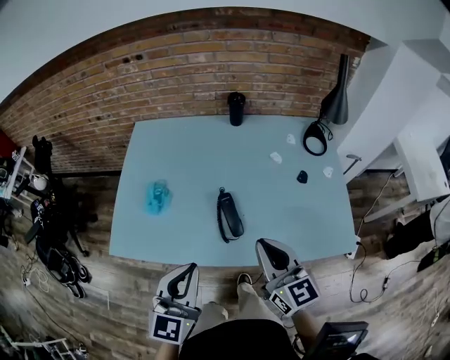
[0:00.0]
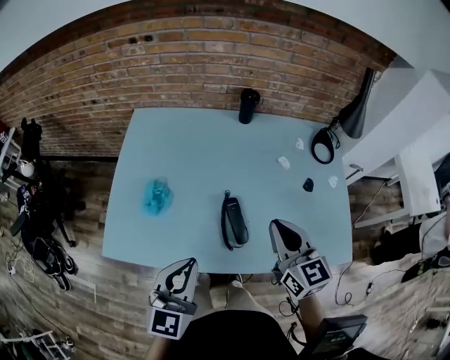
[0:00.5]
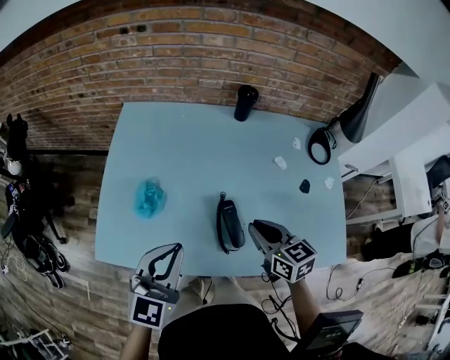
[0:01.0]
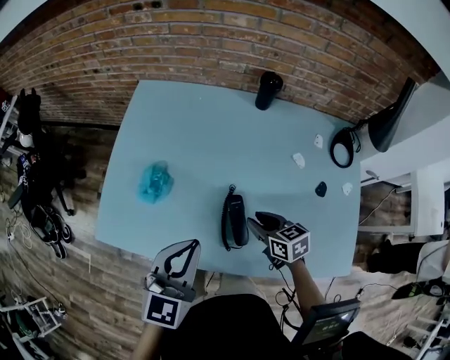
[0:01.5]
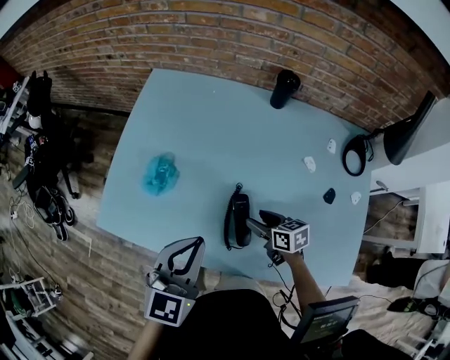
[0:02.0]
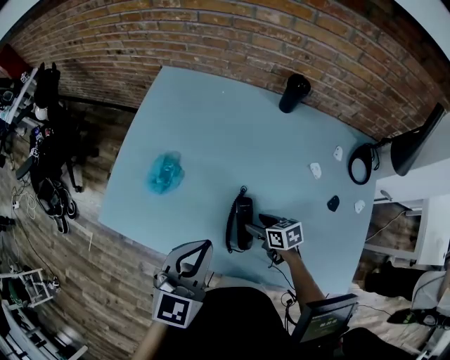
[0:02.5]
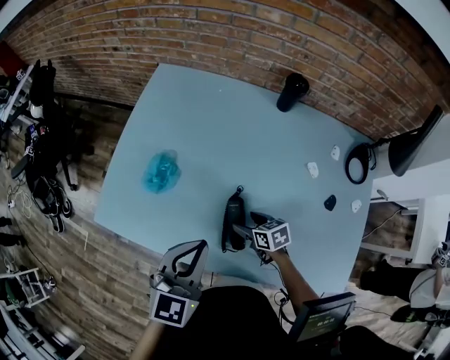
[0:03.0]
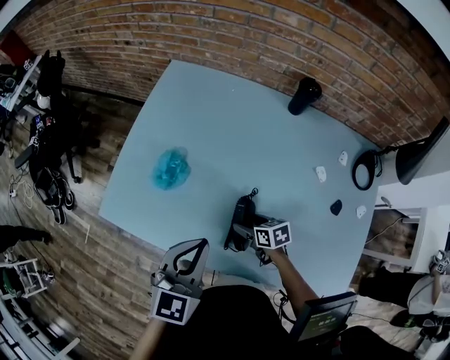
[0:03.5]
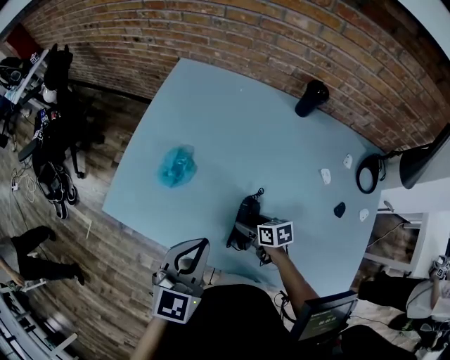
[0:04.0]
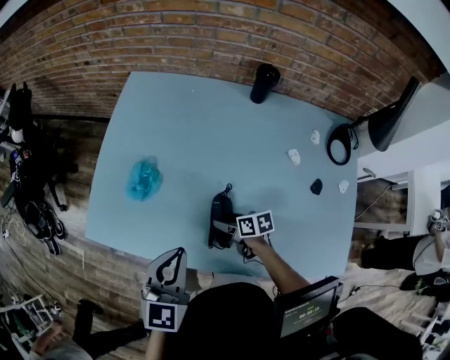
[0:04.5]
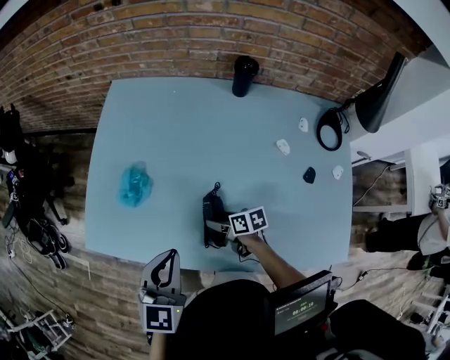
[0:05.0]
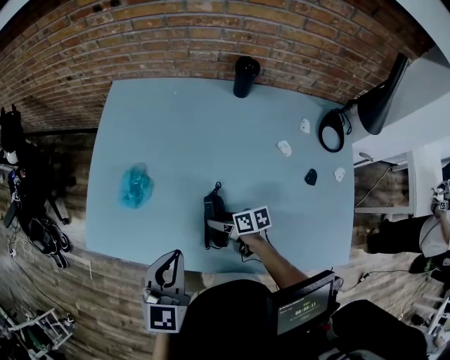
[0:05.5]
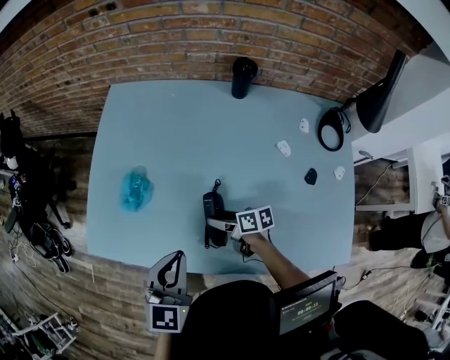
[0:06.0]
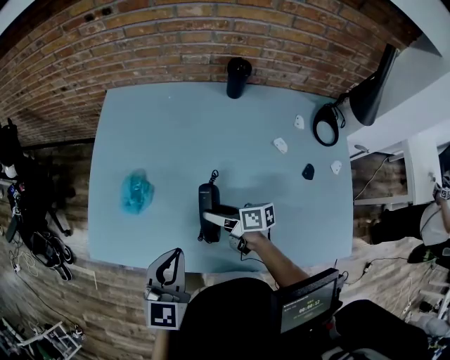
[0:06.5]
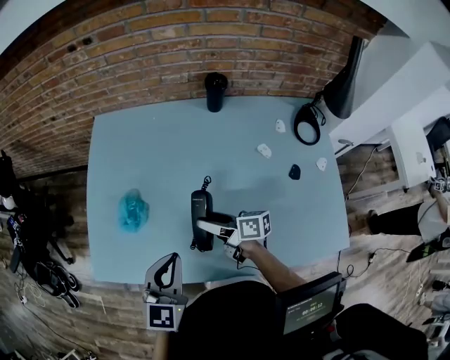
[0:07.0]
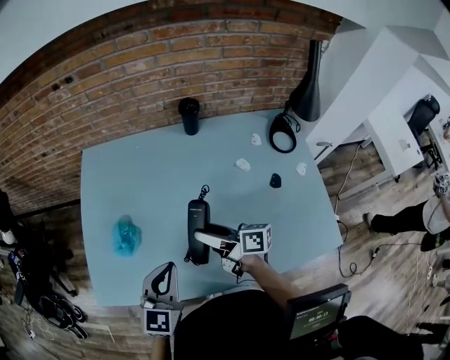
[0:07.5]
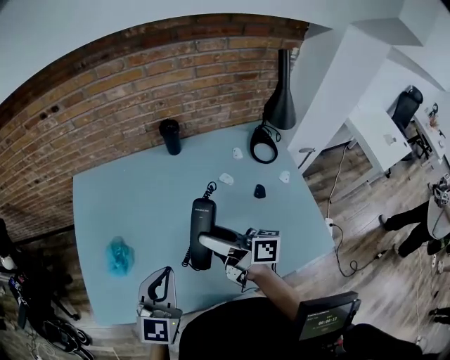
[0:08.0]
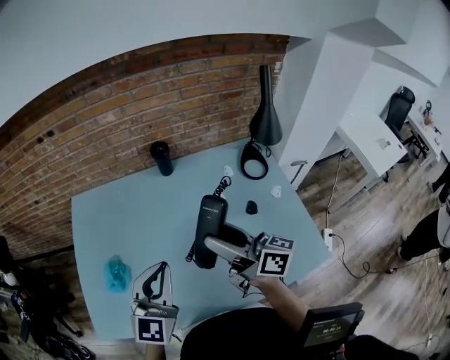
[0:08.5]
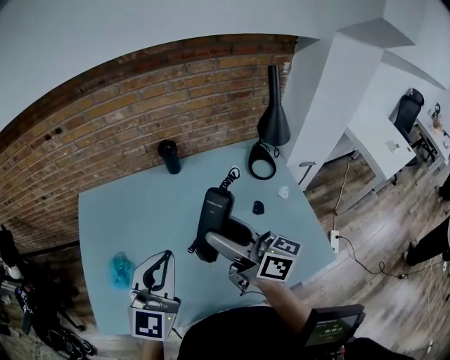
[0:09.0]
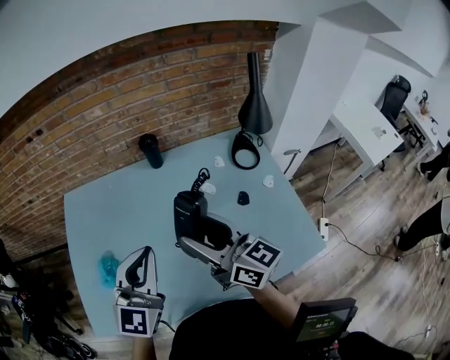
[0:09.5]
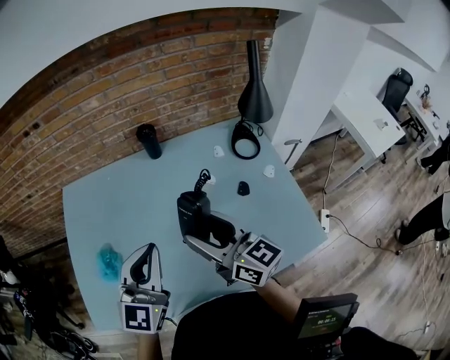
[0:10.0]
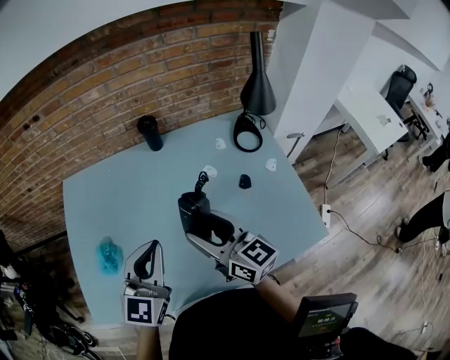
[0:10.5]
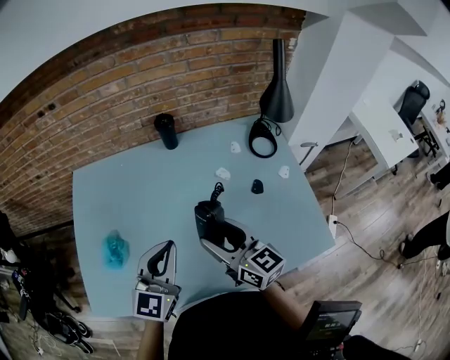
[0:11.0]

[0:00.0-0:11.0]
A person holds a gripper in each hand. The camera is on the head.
0:00.0 to 0:02.0: The left gripper heads forward, covering about 15 cm; the right gripper moves downward and forward, some 35 cm, points its fingers approximately 30 degrees further downward, and opens.
0:02.0 to 0:03.5: The right gripper shifts approximately 10 cm downward and to the left.
0:03.5 to 0:05.5: The right gripper changes its angle by roughly 20 degrees.
0:05.5 to 0:07.5: The right gripper heads upward, covering approximately 20 cm, and tips its fingers upward by some 30 degrees.
0:07.5 to 0:09.0: Both grippers travel together upward and to the right, some 20 cm. The left gripper rotates about 30 degrees, while the right gripper changes its angle by about 40 degrees.
0:09.0 to 0:11.0: Both grippers move downward, approximately 10 cm. The right gripper changes its angle by about 30 degrees.

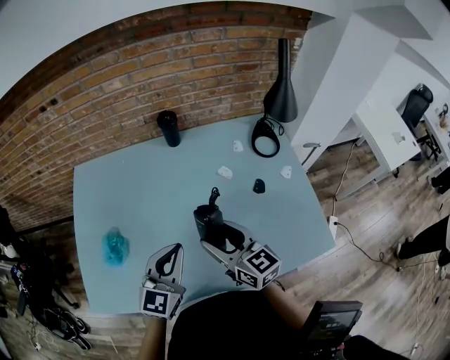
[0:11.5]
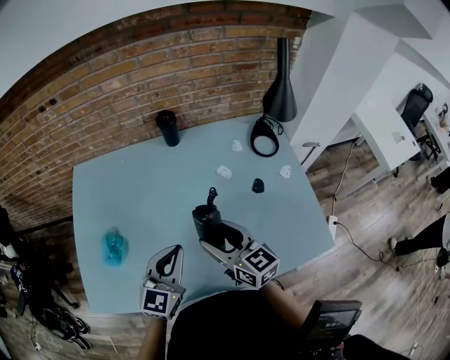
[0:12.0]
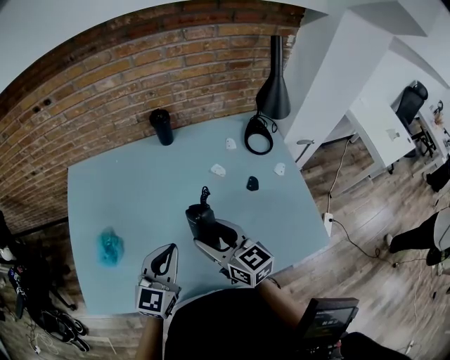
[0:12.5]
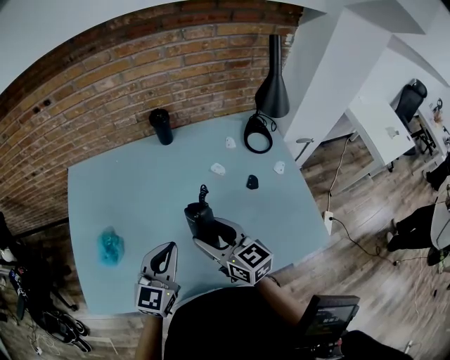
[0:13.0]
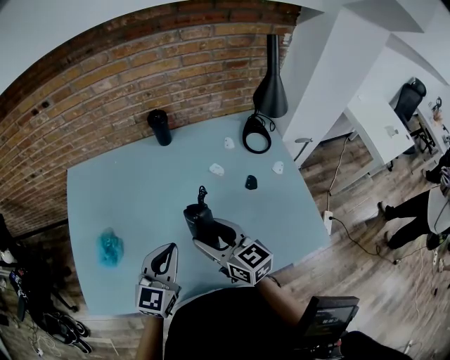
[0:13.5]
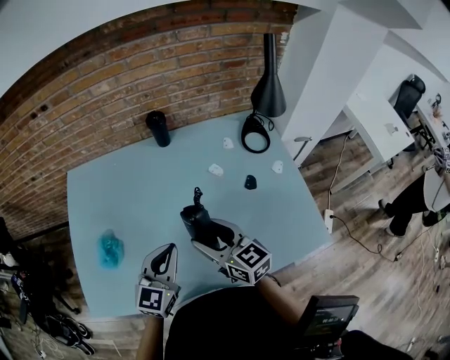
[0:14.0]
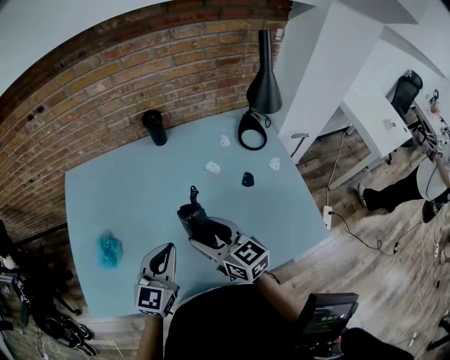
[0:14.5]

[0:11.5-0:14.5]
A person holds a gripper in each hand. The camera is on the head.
0:11.5 to 0:13.0: The grippers make only small movements.
0:13.0 to 0:14.5: Both grippers stay put.

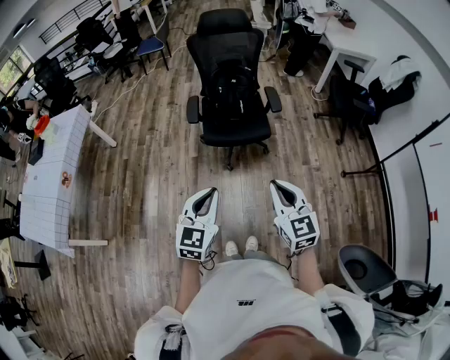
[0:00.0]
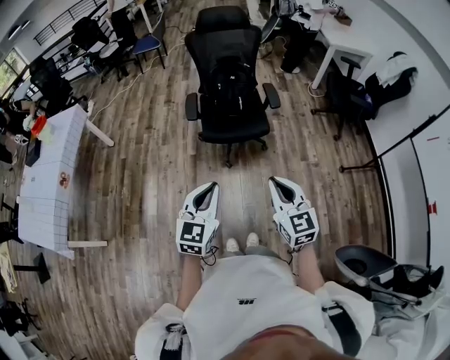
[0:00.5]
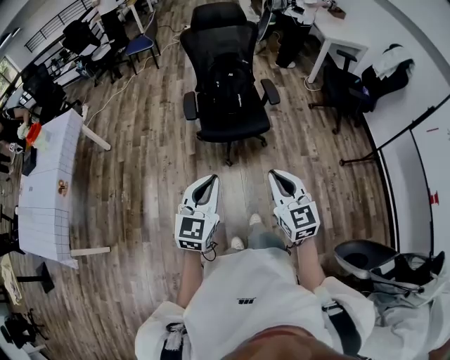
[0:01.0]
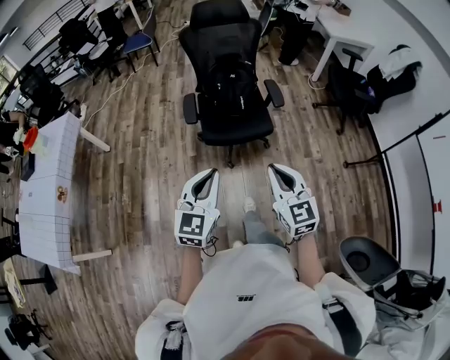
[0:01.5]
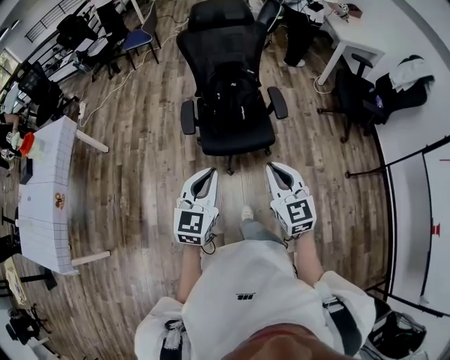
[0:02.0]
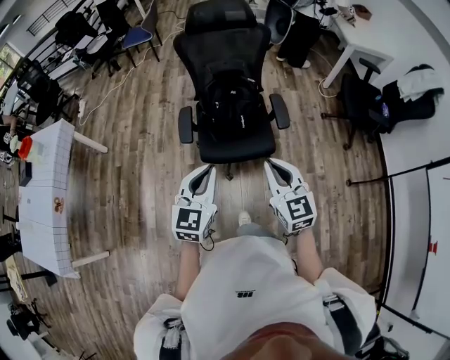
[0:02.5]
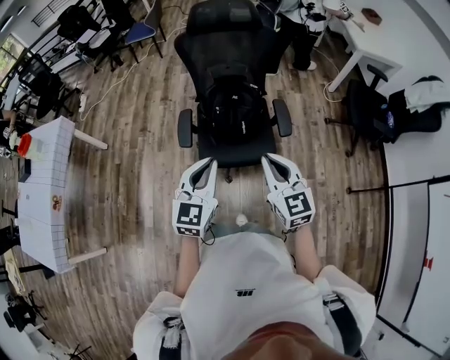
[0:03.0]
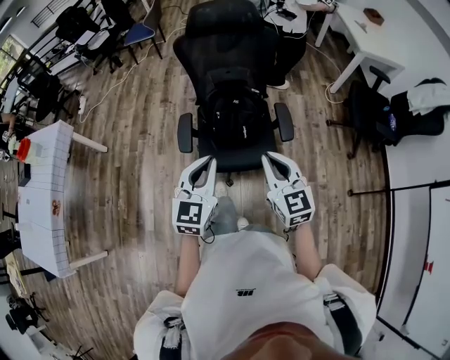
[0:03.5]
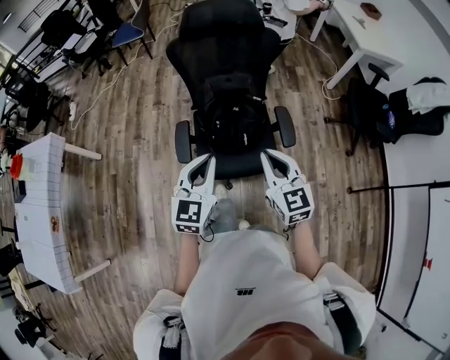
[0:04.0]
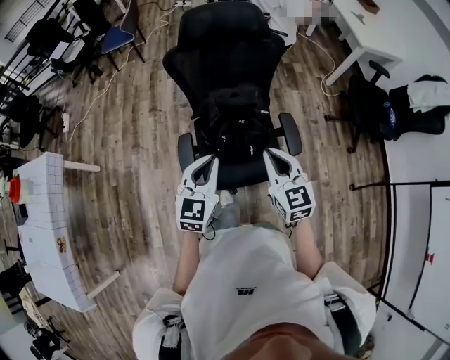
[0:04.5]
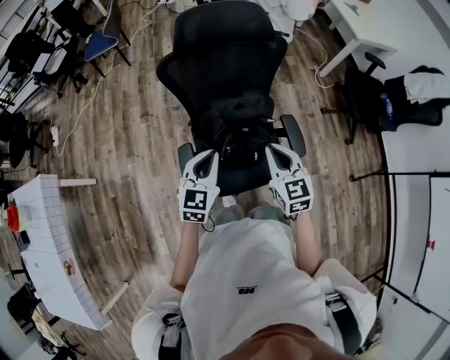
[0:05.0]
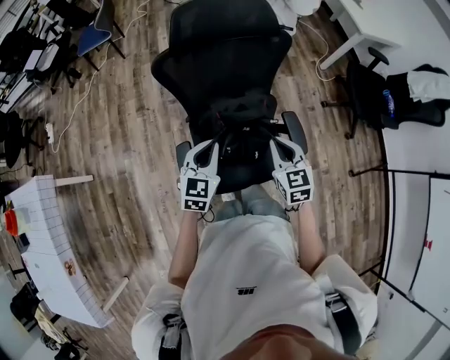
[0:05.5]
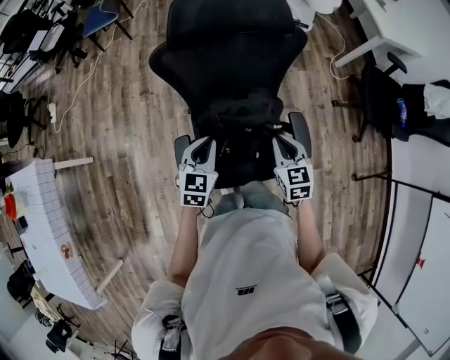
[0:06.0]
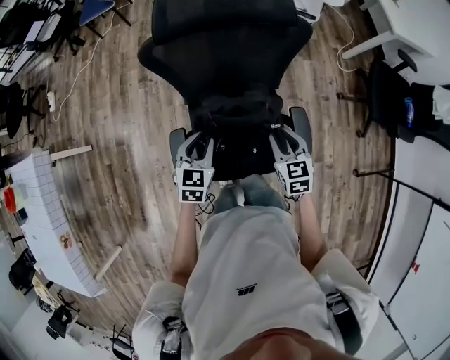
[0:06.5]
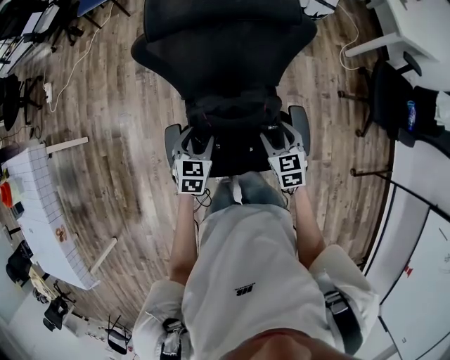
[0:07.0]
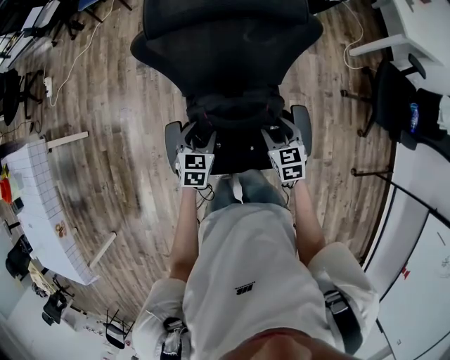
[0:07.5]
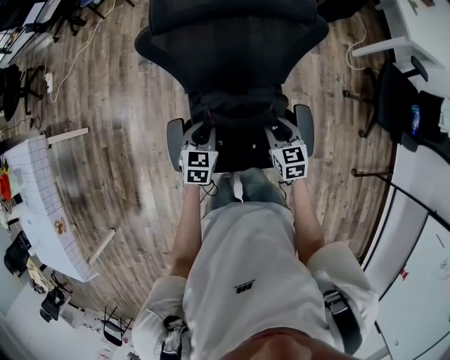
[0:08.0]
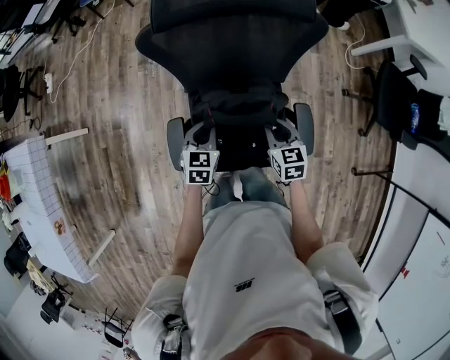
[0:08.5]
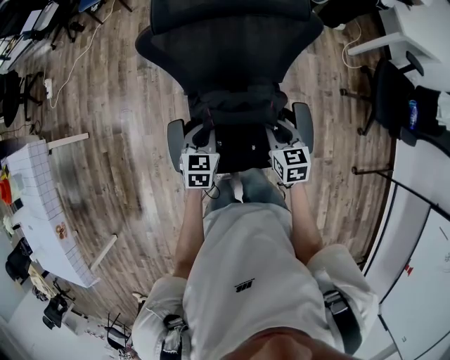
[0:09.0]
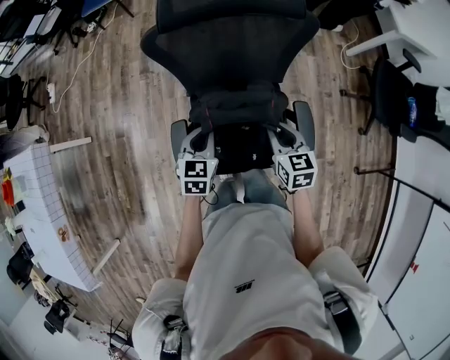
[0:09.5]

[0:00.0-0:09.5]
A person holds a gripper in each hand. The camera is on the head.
0:00.0 to 0:02.0: Both grippers travel together forward, about 25 cm.
0:02.0 to 0:04.0: Both grippers move forward, some 30 cm.
0:04.0 to 0:05.5: The grippers both shift forward and downward by some 25 cm. The right gripper turns by roughly 20 degrees.
0:05.5 to 0:07.5: The two grippers go some 20 cm downward and forward. The left gripper rotates some 30 degrees, and opens its fingers; the right gripper opens its fingers.
0:07.5 to 0:09.5: Both grippers move upward, about 5 cm. The left gripper closes up; the right gripper closes.

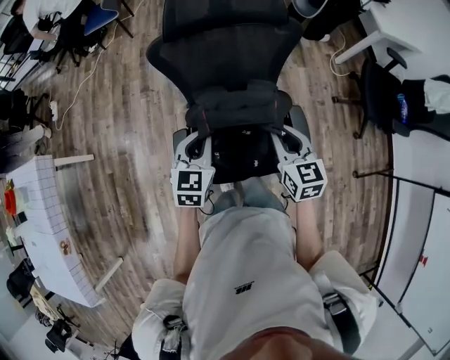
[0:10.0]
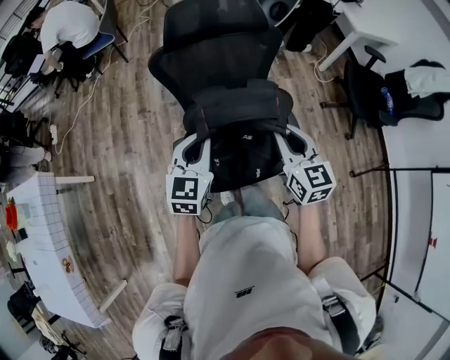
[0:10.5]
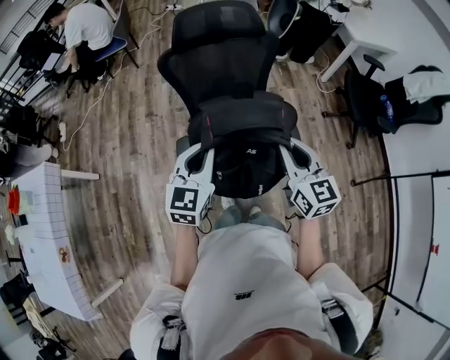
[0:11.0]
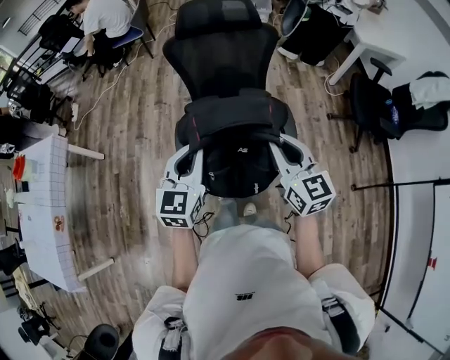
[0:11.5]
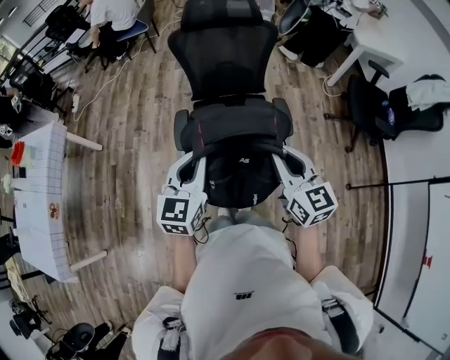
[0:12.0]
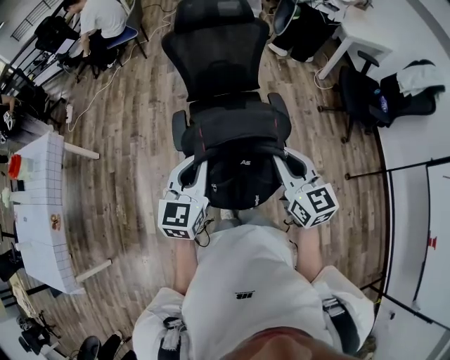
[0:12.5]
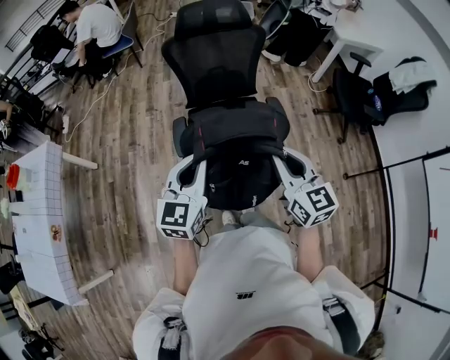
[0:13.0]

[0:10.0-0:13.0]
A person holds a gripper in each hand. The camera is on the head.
0:10.0 to 0:11.5: Both grippers travel together backward and upward, about 30 cm.
0:11.5 to 0:13.0: Both grippers travel together backward, about 10 cm.
